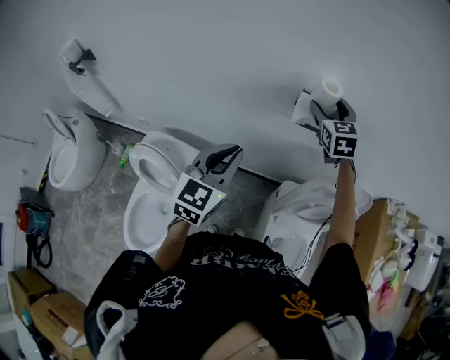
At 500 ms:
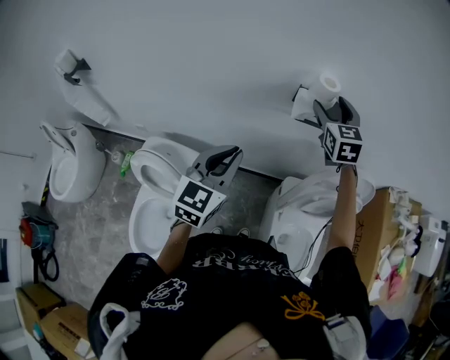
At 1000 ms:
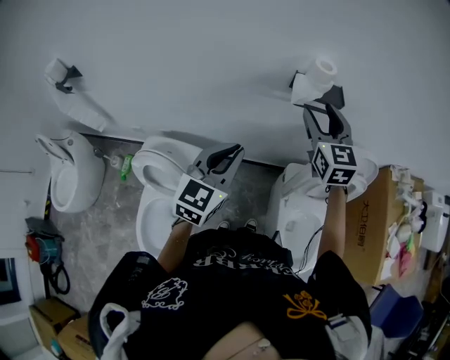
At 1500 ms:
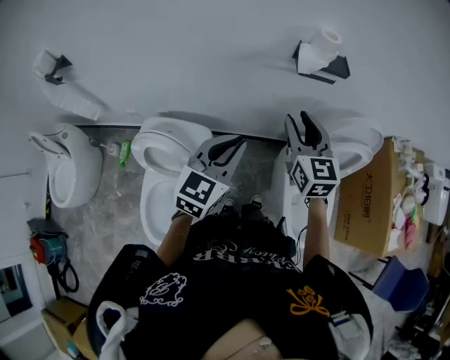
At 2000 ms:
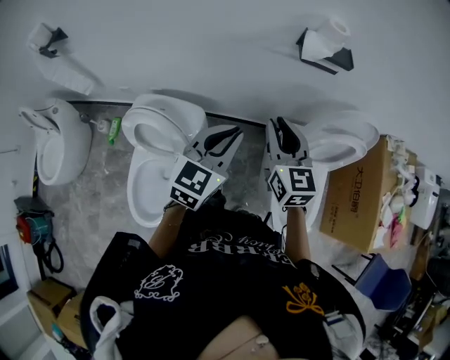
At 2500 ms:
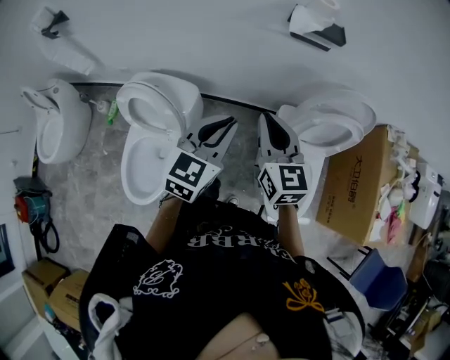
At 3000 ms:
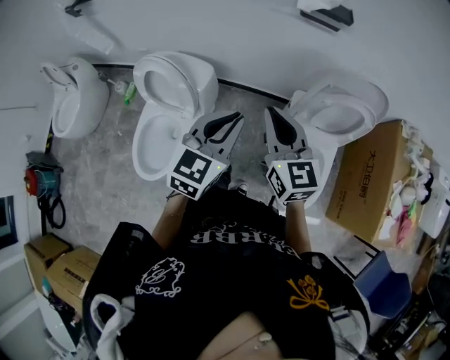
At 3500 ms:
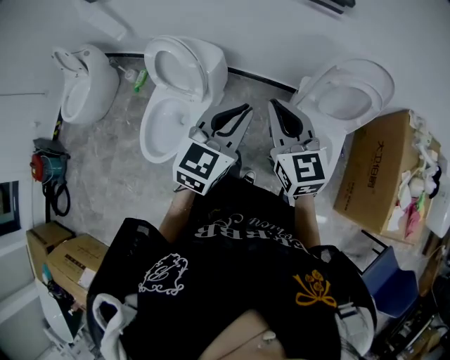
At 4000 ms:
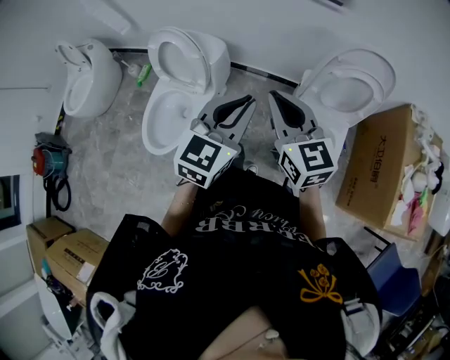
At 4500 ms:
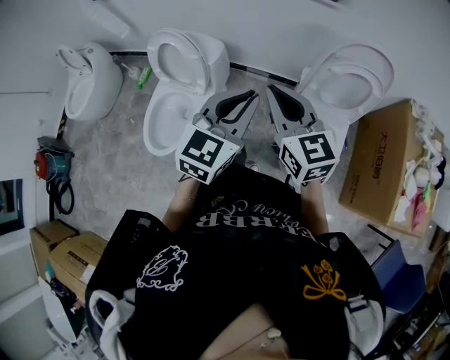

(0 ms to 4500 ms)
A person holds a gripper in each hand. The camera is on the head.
0 ms - 2000 ms: The left gripper shifts about 10 cm backward; the right gripper heads backward, covering some 30 cm, turns by approximately 20 degrees, and closes.
2000 ms - 4500 ms: The grippers both shift backward by approximately 25 cm. The right gripper rotates about 20 degrees.

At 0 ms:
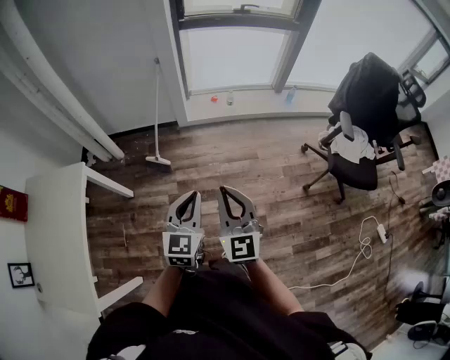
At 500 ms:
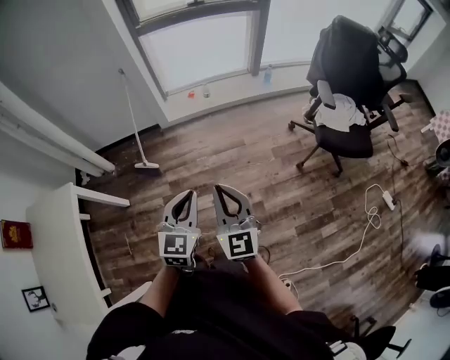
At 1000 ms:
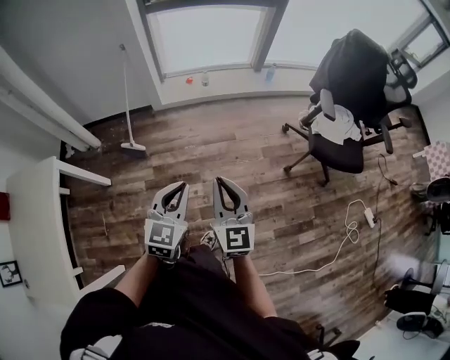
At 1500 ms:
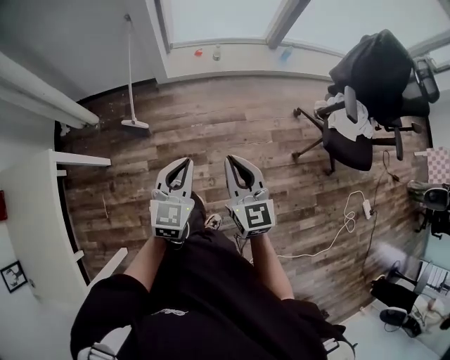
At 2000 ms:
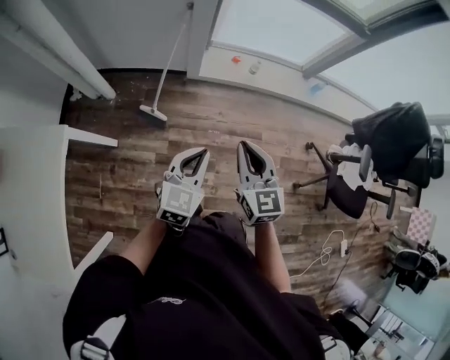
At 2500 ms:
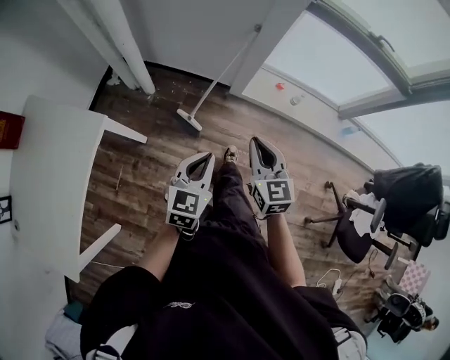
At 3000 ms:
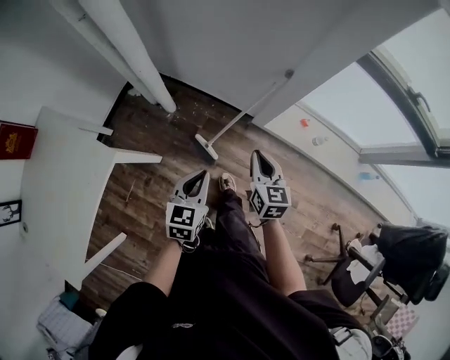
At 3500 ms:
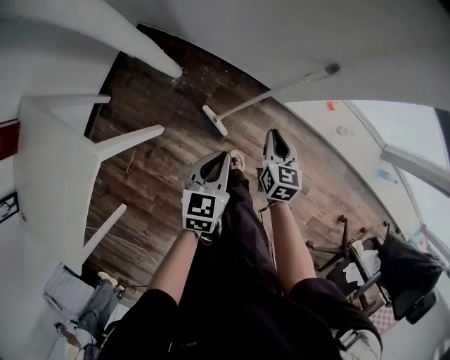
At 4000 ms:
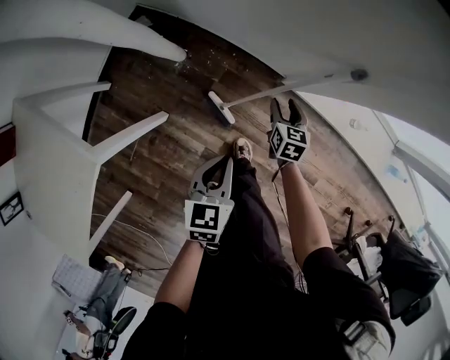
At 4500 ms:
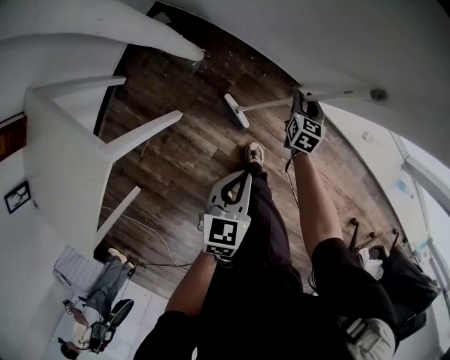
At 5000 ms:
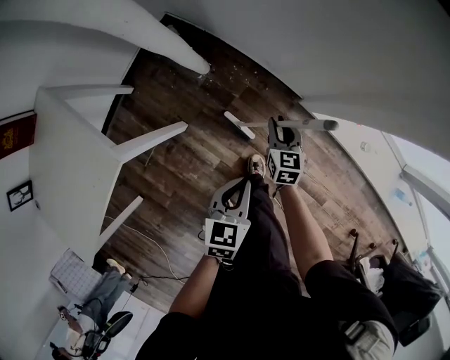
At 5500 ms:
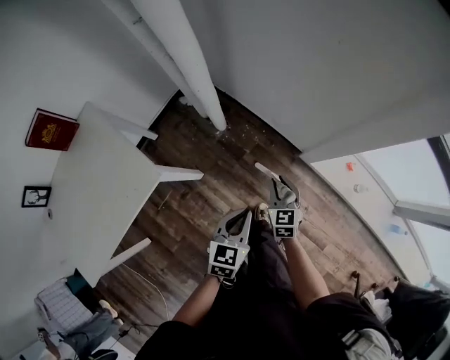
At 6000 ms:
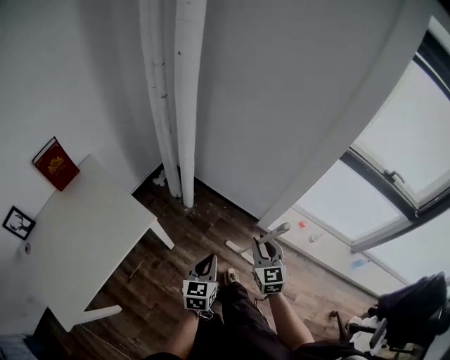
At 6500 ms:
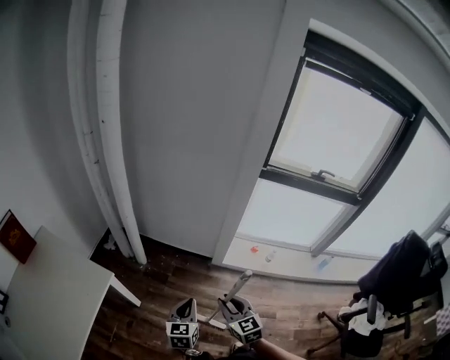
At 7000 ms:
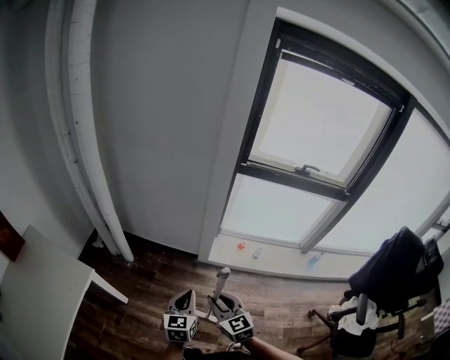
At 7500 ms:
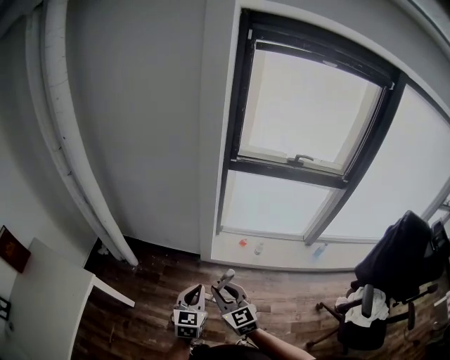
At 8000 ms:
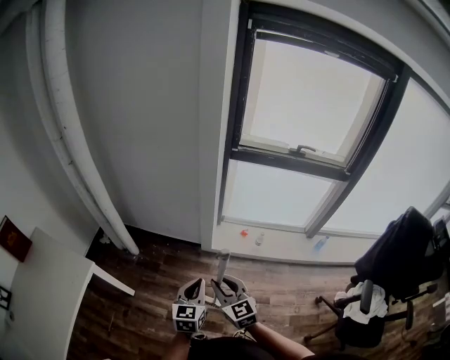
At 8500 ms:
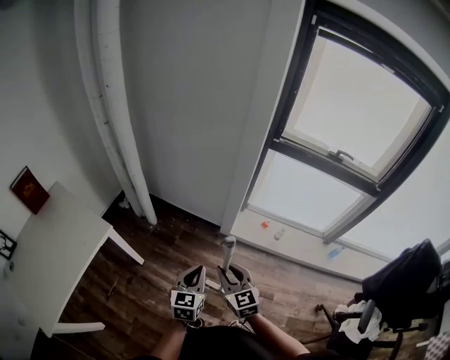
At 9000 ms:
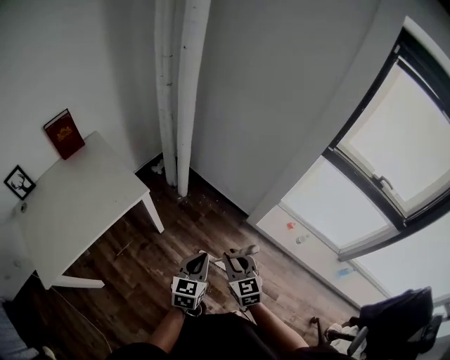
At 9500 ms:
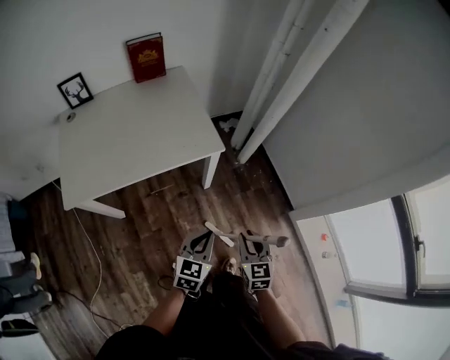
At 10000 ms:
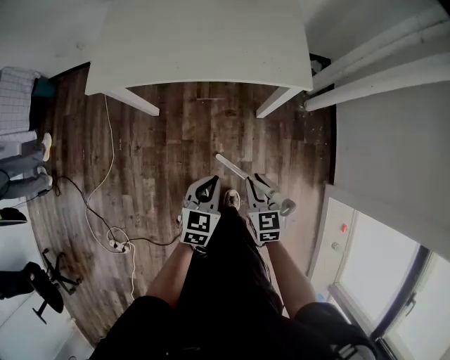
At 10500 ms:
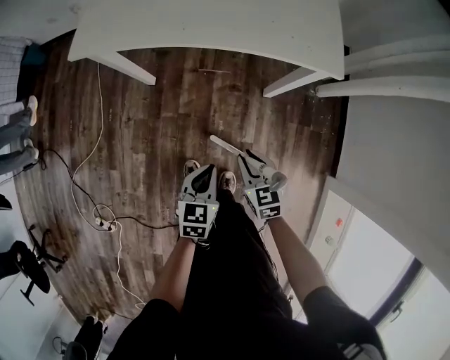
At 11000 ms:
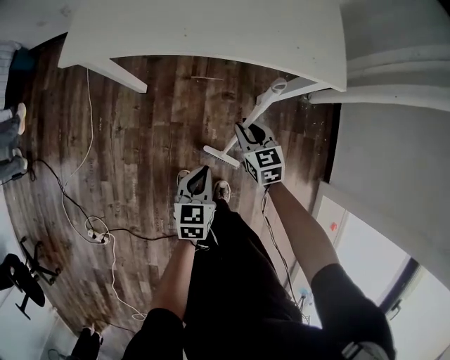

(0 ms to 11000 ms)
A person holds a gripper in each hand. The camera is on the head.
0 ms - 2000 ms: The two grippers go about 25 cm forward.
2000 ms - 3500 ms: The right gripper is displaced forward and downward by some 50 cm, and swivels some 30 degrees. Meanwhile the left gripper travels forward, to the left and downward by some 40 cm, and swivels approximately 40 degrees.
3500 ms - 5500 ms: The right gripper moves to the left, some 15 cm, goes downward and returns, roughly 15 cm each way, rotates roughly 30 degrees, and opens, then closes again. The left gripper is displaced backward, upward and to the left by some 15 cm.
5500 ms - 7500 ms: The left gripper goes roughly 30 cm to the right, backward and upward, and changes its angle by some 30 degrees; the right gripper travels backward, upward and to the right by approximately 40 cm.
7500 ms - 9000 ms: The right gripper heads to the left and downward, covering approximately 15 cm, and turns by about 20 degrees. The left gripper moves to the left, approximately 15 cm, and swivels some 30 degrees.
9000 ms - 11000 ms: The left gripper moves approximately 40 cm, and rotates some 60 degrees. Meanwhile the right gripper shifts by some 50 cm, and rotates about 60 degrees.

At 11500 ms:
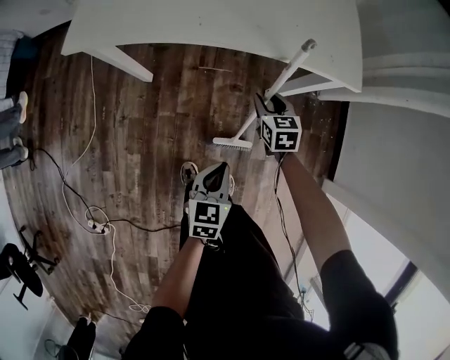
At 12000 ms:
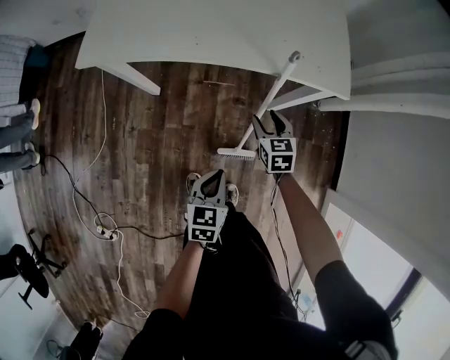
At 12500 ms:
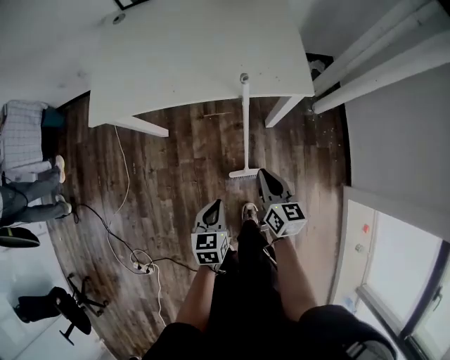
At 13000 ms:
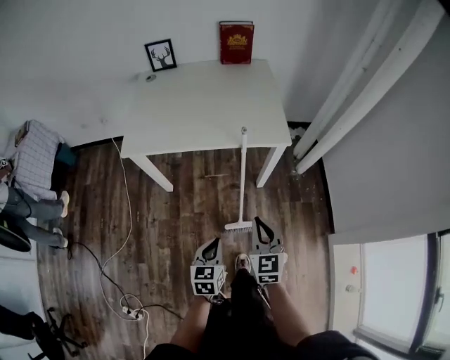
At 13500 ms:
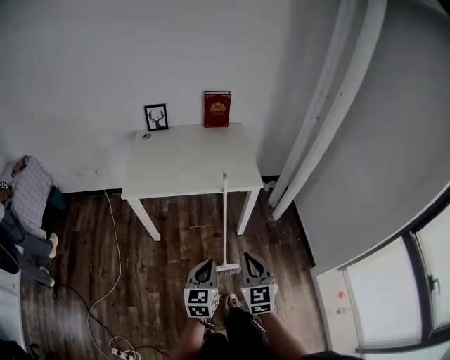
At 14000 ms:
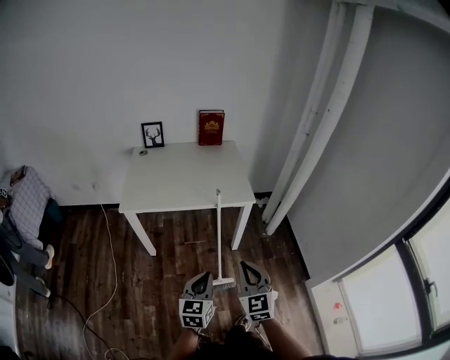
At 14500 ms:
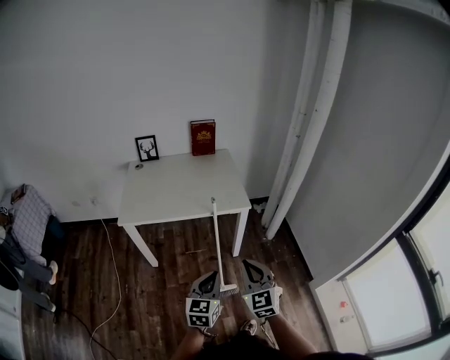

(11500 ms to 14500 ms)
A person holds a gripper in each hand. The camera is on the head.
11500 ms - 13000 ms: The right gripper travels upward and backward by roughly 40 cm, rotates approximately 30 degrees, and closes up. The left gripper heads upward and backward, covering approximately 20 cm.
13000 ms - 14500 ms: The right gripper travels upward and backward by some 15 cm. Meanwhile the left gripper is displaced upward by about 20 cm, and swivels about 20 degrees.

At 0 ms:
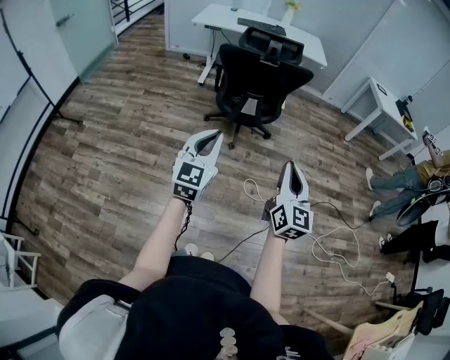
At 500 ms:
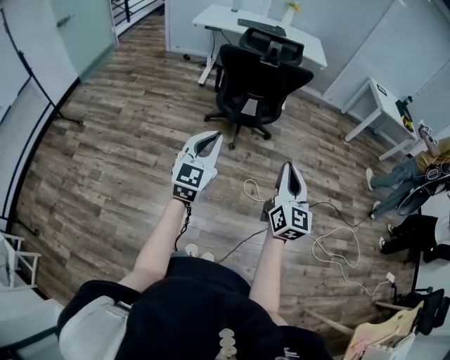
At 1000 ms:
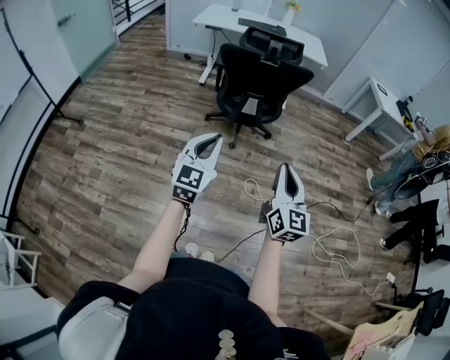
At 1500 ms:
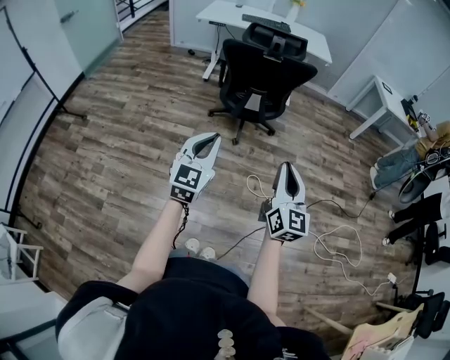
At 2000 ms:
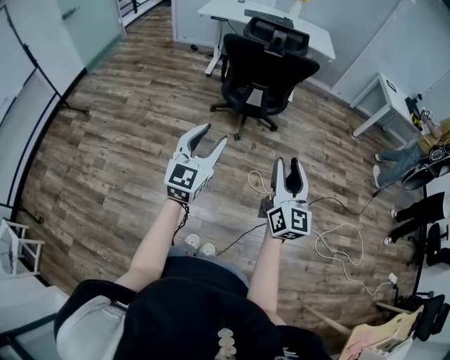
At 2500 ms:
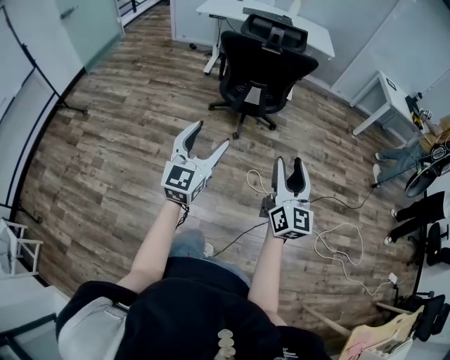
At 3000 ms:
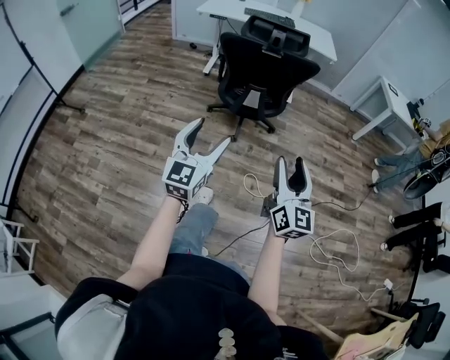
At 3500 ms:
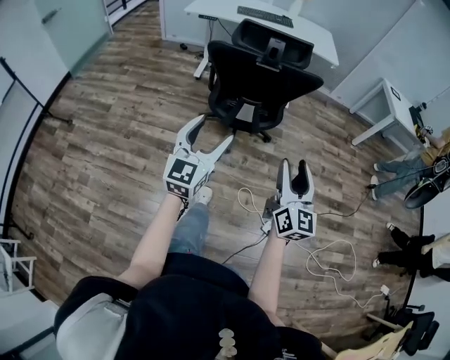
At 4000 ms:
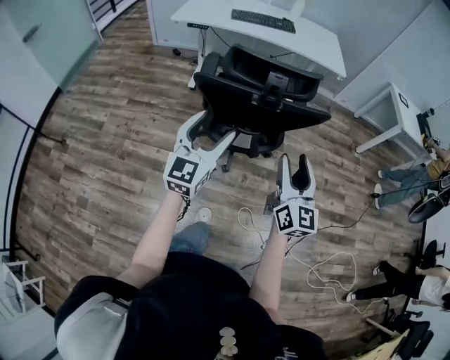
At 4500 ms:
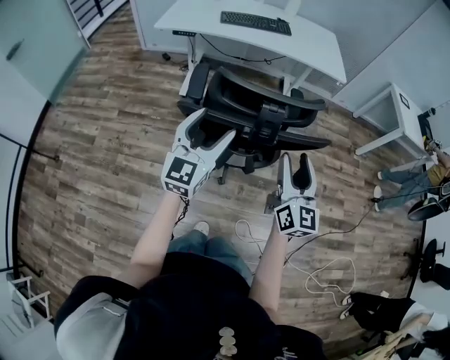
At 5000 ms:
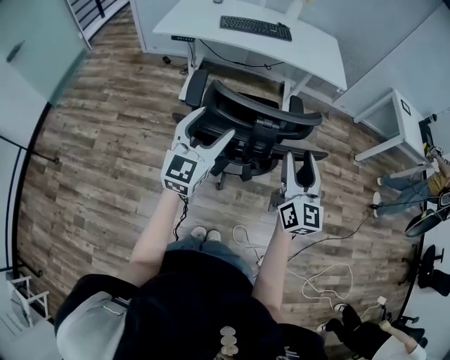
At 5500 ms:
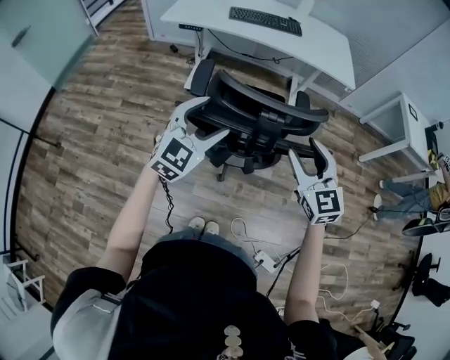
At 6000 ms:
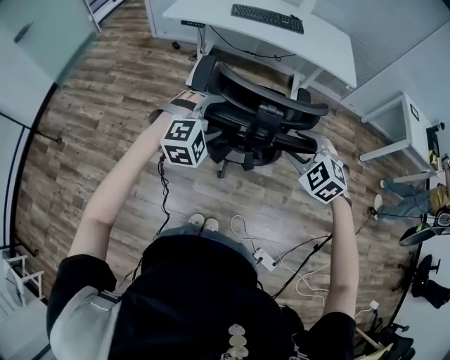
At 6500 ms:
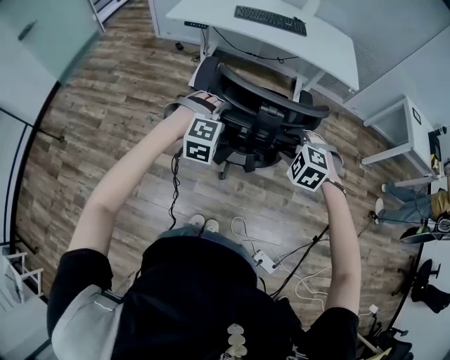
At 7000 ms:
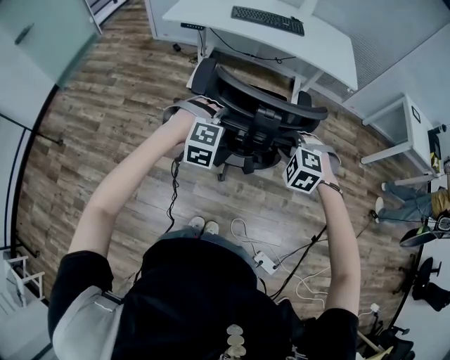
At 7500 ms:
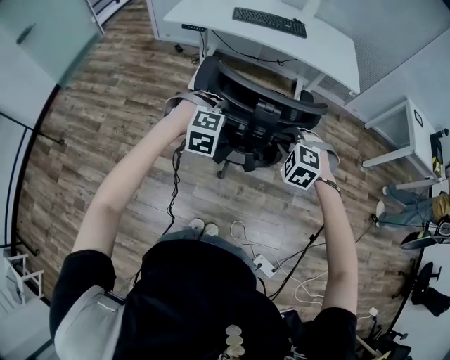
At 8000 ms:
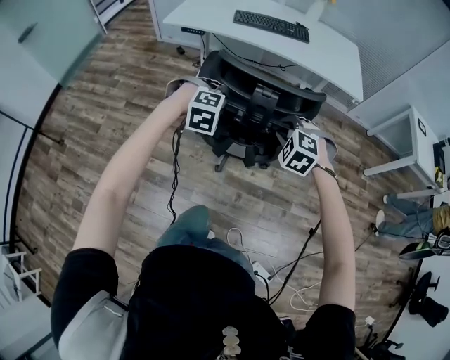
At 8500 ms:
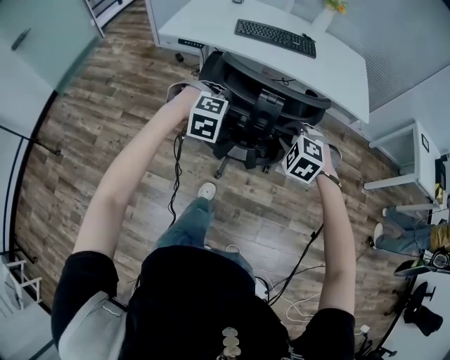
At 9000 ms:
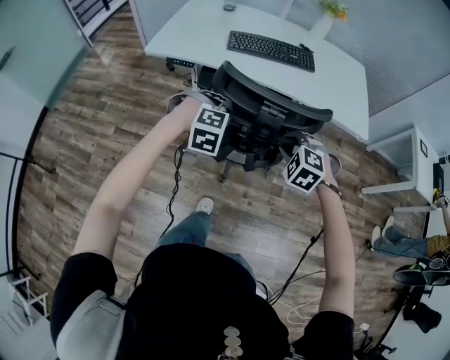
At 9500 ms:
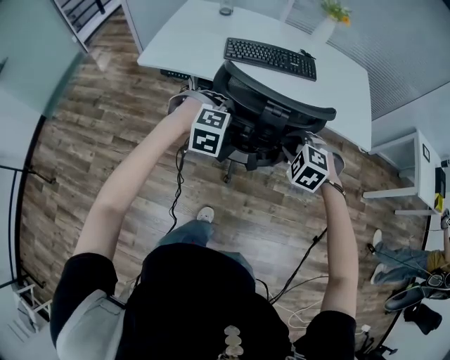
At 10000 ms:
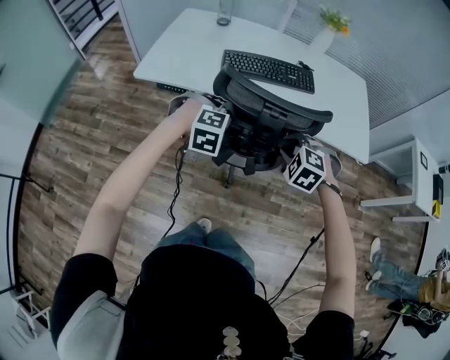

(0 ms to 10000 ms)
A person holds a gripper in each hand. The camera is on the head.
0 ms - 2000 ms: The right gripper opens up, while the left gripper opens its fingers.
2000 ms - 4000 ms: The pair of grippers is taken forward, roughly 50 cm. The left gripper opens its fingers.
4000 ms - 6000 ms: Both grippers travel together forward, approximately 20 cm. The right gripper angles its fingers downward, by about 50 degrees. Meanwhile the left gripper tilts its fingers roughly 40 degrees downward.
6000 ms - 8000 ms: The right gripper travels forward by roughly 15 cm, and closes up, while the left gripper travels forward and downward by roughly 15 cm, rotates some 20 degrees, and closes up.
8000 ms - 10000 ms: The two grippers travel together, forward, some 40 cm.
